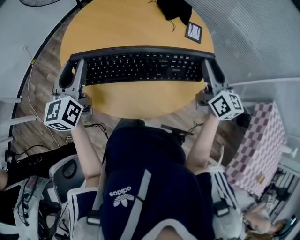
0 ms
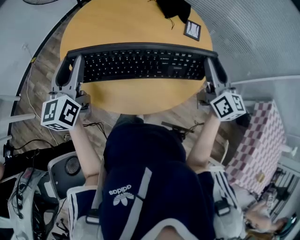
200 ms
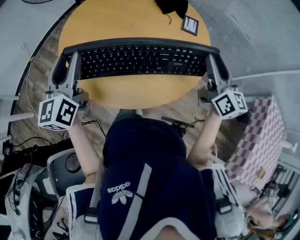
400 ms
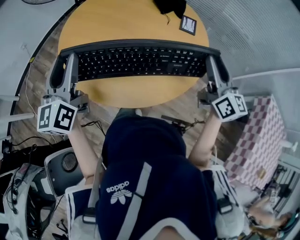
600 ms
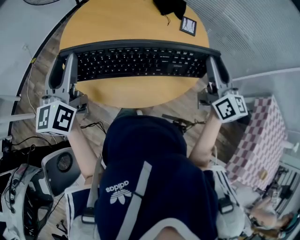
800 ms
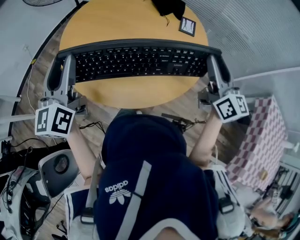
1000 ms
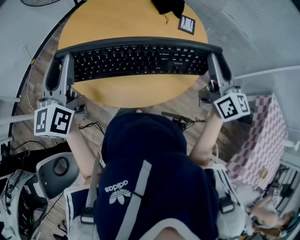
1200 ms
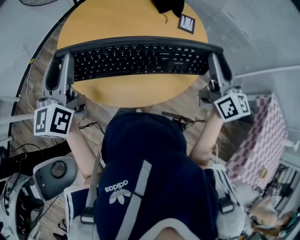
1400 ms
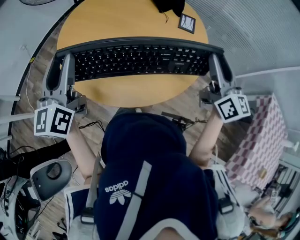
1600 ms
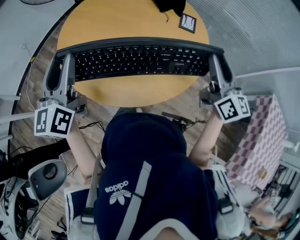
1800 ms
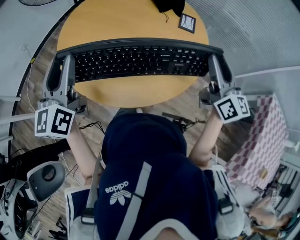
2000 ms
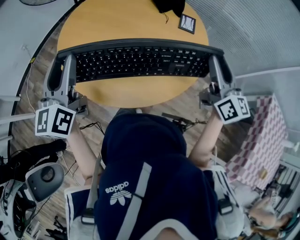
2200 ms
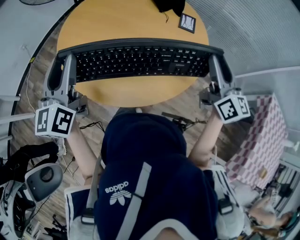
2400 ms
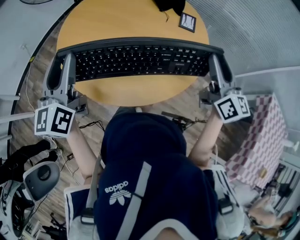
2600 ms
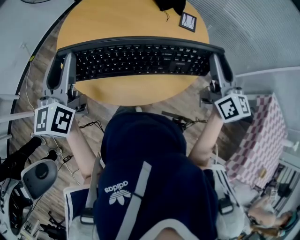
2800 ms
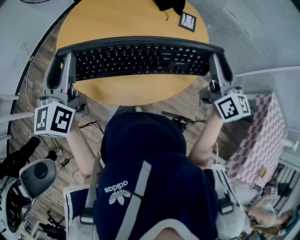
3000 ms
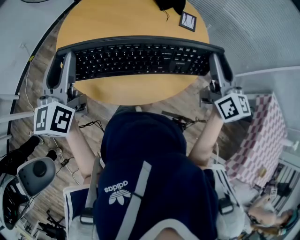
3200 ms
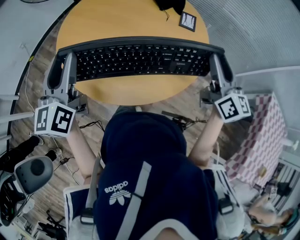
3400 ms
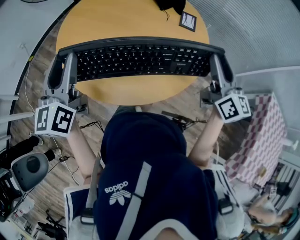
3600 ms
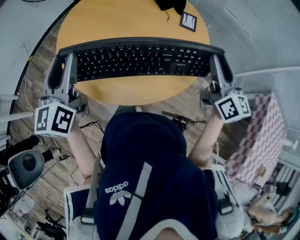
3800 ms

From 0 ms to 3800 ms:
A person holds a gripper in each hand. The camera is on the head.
From 0 ms to 1200 ms: There are only small adjustments of the grippers.
From 1200 ms to 3800 ms: Both grippers stay put.

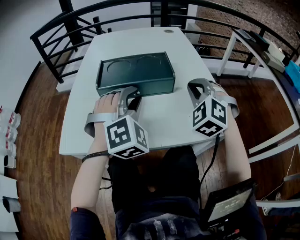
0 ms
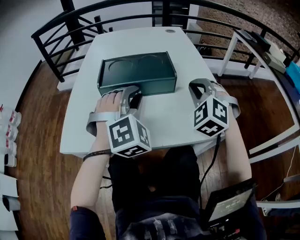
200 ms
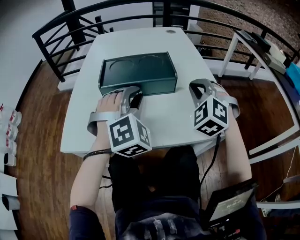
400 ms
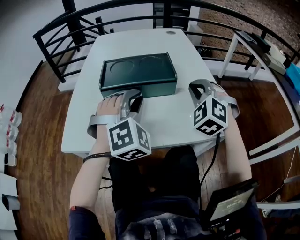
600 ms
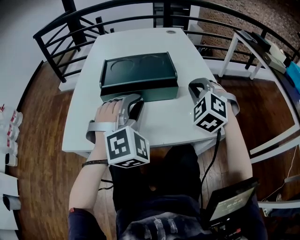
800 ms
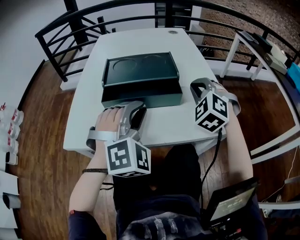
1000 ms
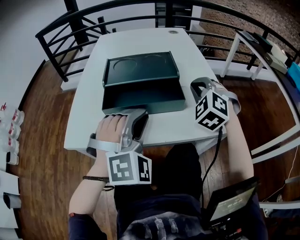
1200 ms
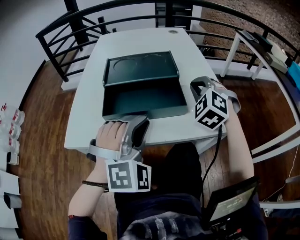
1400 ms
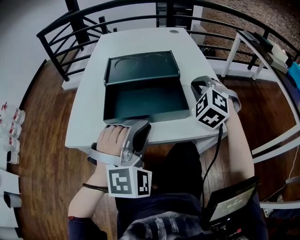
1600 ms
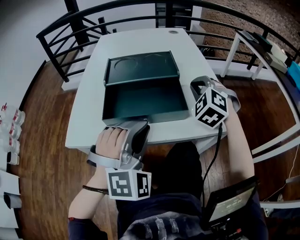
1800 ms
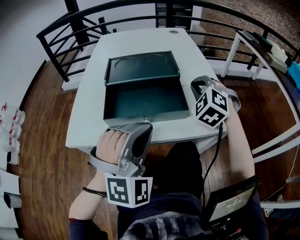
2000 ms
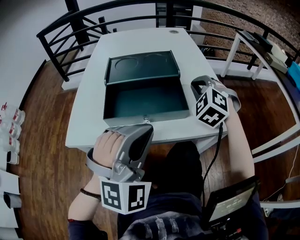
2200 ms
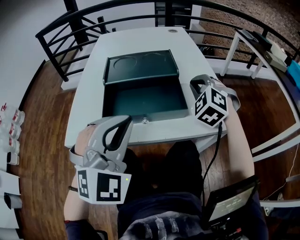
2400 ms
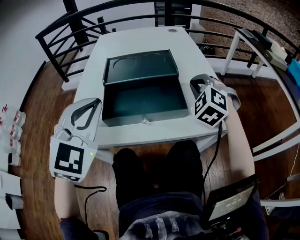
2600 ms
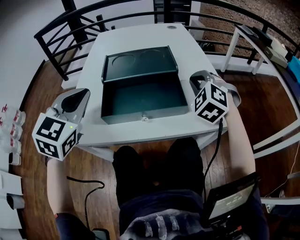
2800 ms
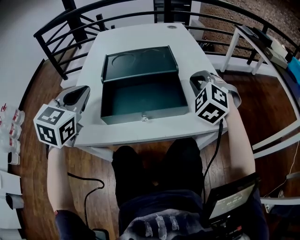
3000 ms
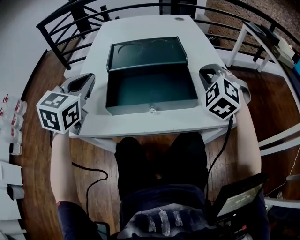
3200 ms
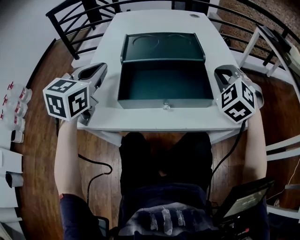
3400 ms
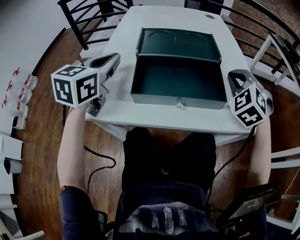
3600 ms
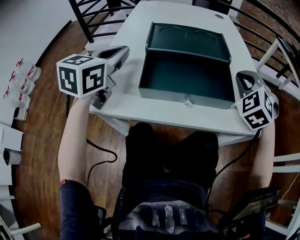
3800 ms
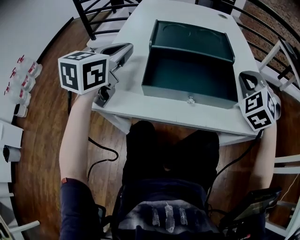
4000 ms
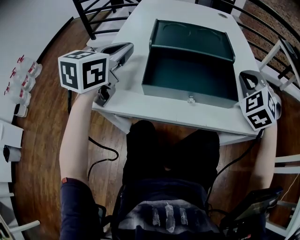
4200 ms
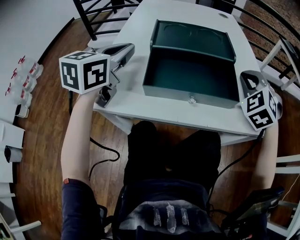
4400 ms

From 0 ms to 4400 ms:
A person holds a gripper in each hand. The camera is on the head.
From 0 ms to 1400 ms: The left gripper shifts approximately 10 cm backward.
From 1400 ms to 3000 ms: The left gripper goes roughly 20 cm to the left, and rotates around the line of its fingers by approximately 50 degrees, counterclockwise from behind.
From 3000 ms to 4400 ms: The left gripper rotates about 20 degrees.

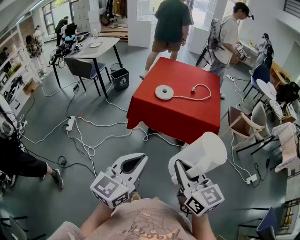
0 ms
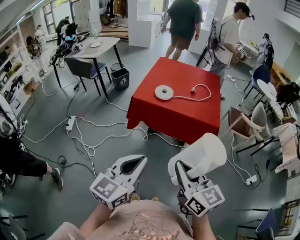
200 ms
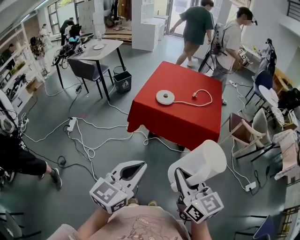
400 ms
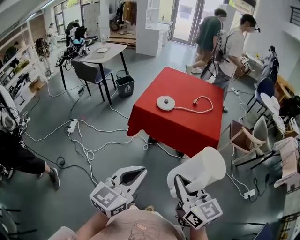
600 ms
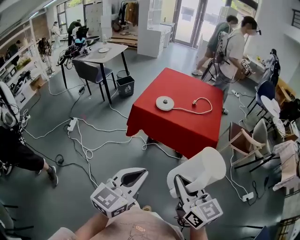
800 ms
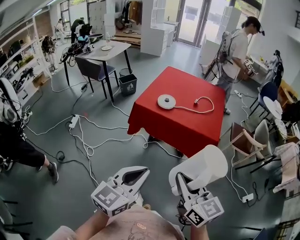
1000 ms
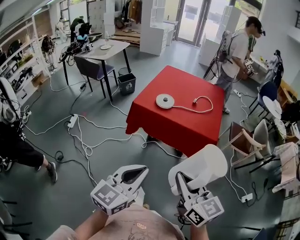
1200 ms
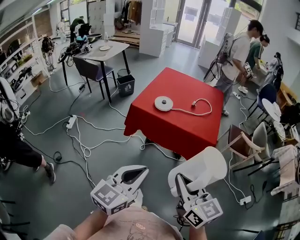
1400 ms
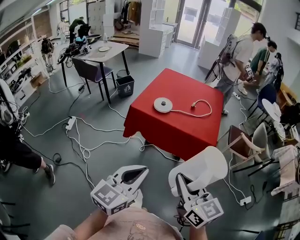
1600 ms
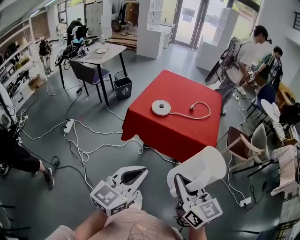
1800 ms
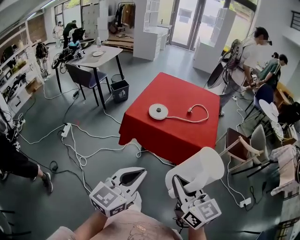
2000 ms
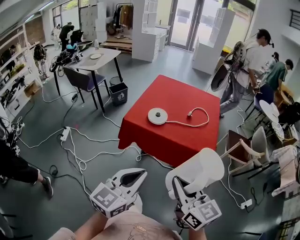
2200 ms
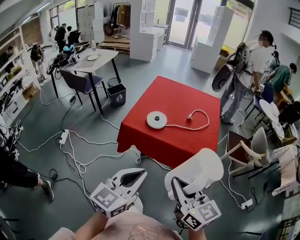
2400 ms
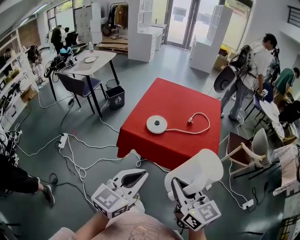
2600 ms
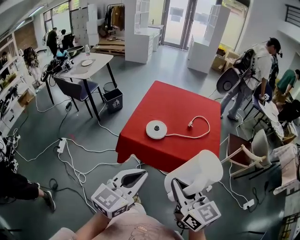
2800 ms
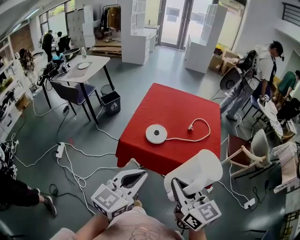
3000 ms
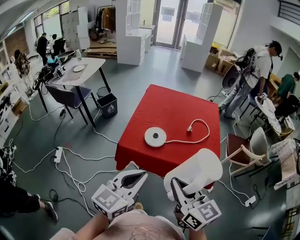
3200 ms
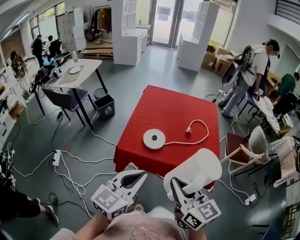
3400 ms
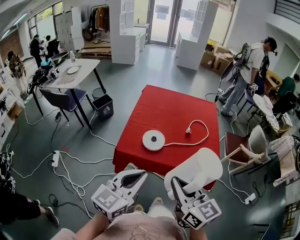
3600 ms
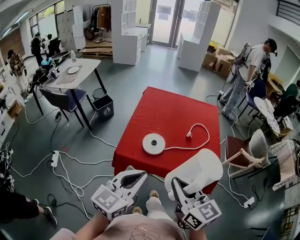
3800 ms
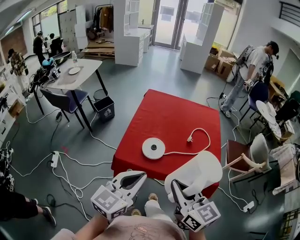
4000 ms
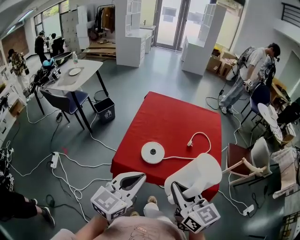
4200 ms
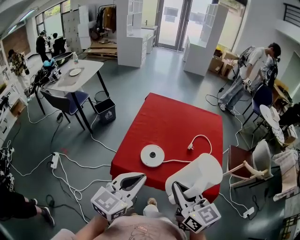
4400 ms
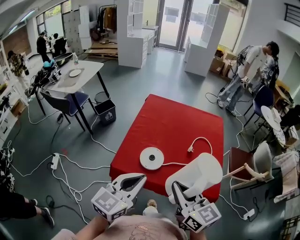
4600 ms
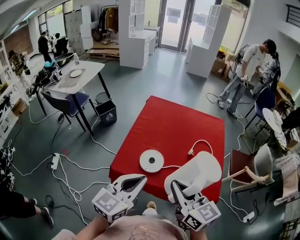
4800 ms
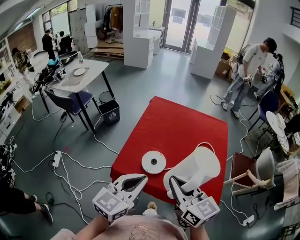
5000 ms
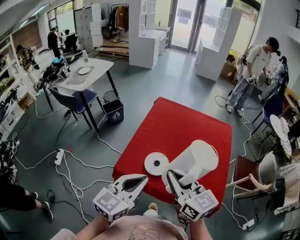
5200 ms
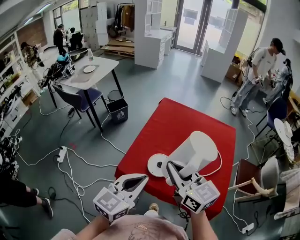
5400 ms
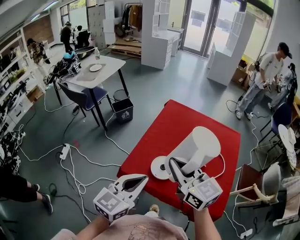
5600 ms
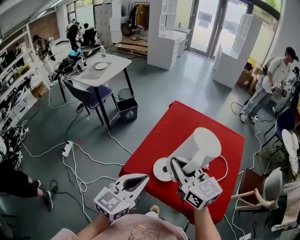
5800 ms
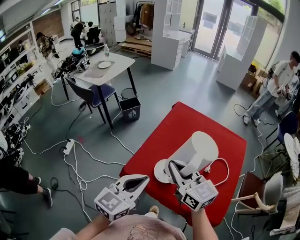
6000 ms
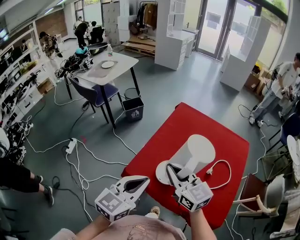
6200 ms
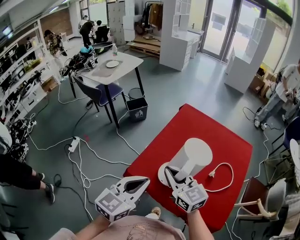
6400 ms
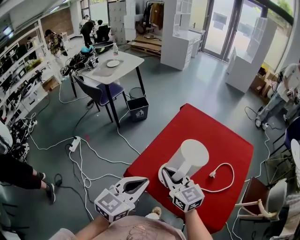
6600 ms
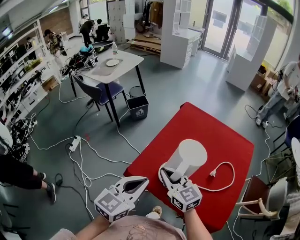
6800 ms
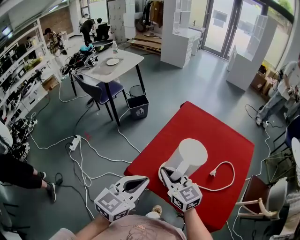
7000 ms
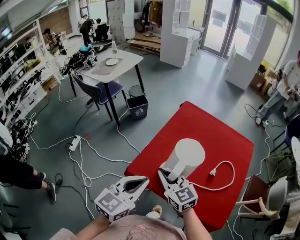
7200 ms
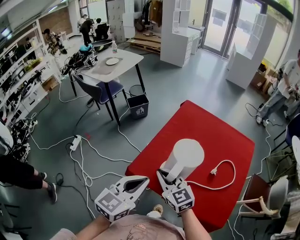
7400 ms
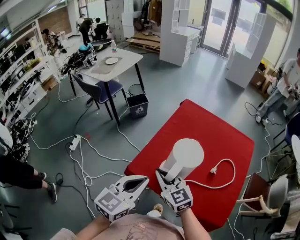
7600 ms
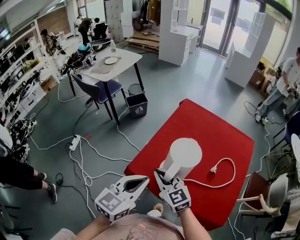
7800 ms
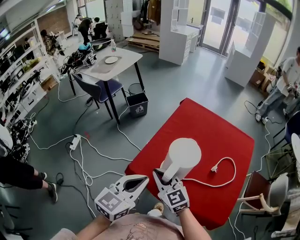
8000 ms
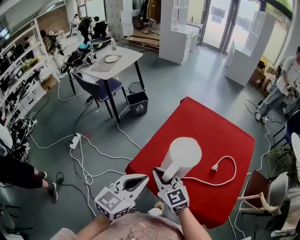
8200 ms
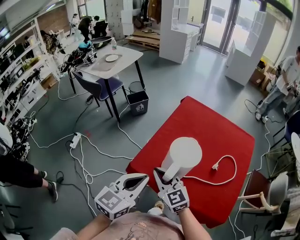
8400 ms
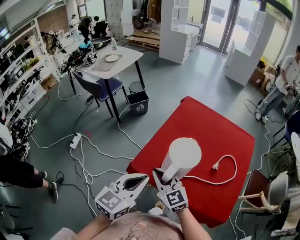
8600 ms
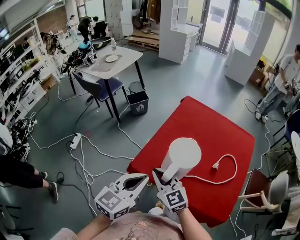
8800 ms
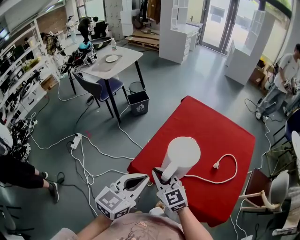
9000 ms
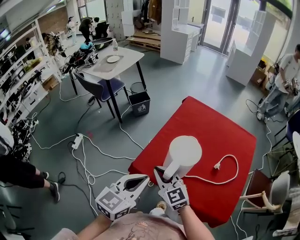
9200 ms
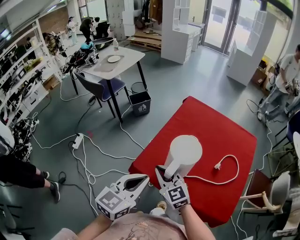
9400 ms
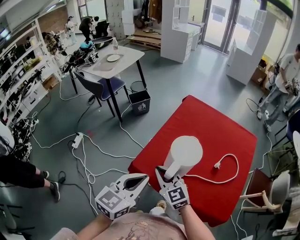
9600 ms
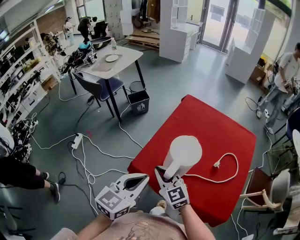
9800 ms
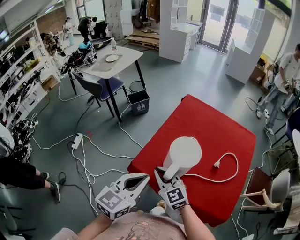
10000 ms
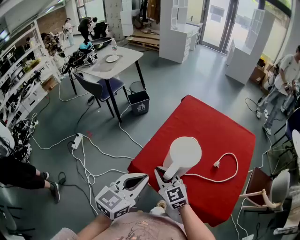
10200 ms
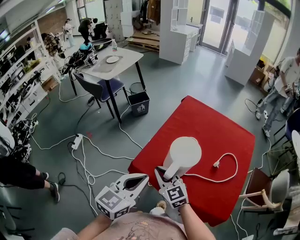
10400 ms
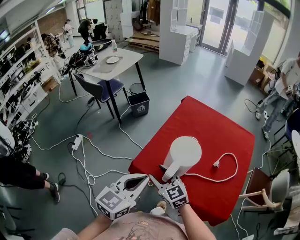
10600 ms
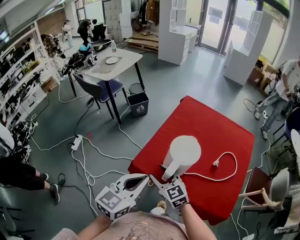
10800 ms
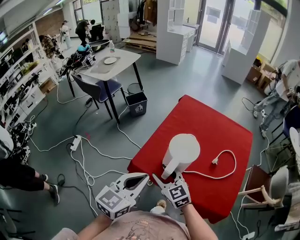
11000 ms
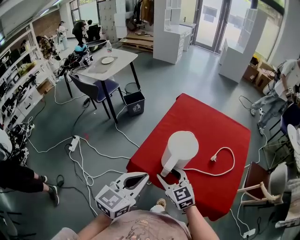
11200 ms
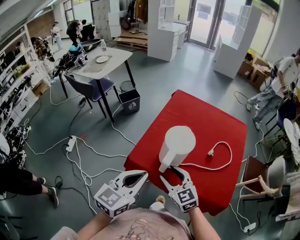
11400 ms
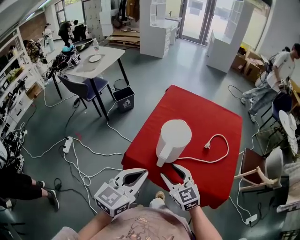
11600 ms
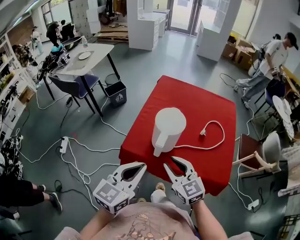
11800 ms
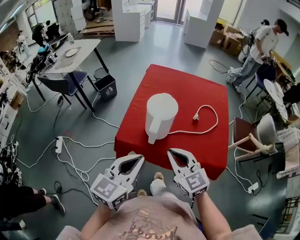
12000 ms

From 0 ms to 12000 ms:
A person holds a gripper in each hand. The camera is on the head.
From 0 ms to 1600 ms: The grippers both shift to the right by roughly 5 cm.
From 1600 ms to 3000 ms: Both grippers move forward, approximately 20 cm.
From 3000 ms to 4400 ms: Both grippers move forward, approximately 15 cm.
From 4400 ms to 6000 ms: The left gripper goes roughly 5 cm forward. The right gripper heads forward and to the left, covering some 20 cm, and turns by roughly 20 degrees.
From 6000 ms to 7600 ms: The right gripper heads downward and to the left, covering approximately 15 cm.
From 7600 ms to 10400 ms: There are only small adjustments of the grippers.
From 10400 ms to 12000 ms: The right gripper is displaced backward, to the right and upward by roughly 15 cm, and opens and closes again. Meanwhile the left gripper goes roughly 5 cm backward.

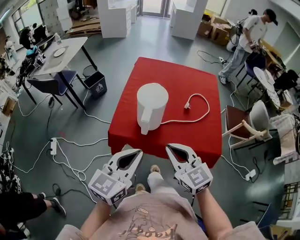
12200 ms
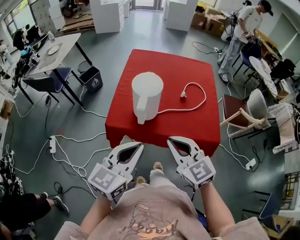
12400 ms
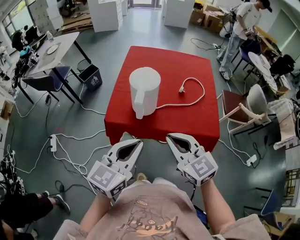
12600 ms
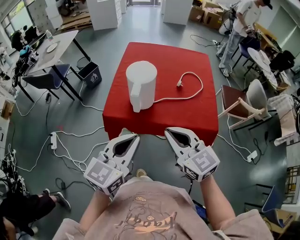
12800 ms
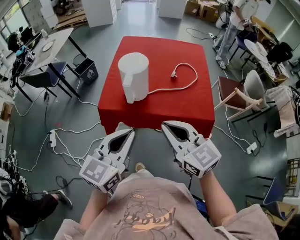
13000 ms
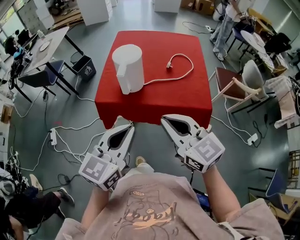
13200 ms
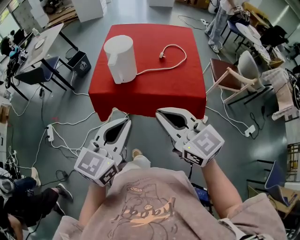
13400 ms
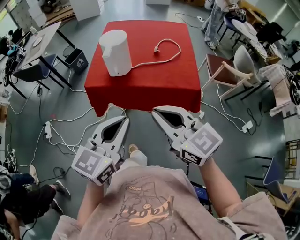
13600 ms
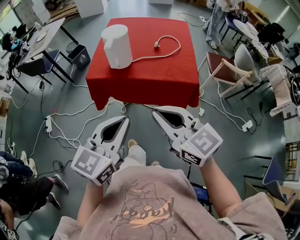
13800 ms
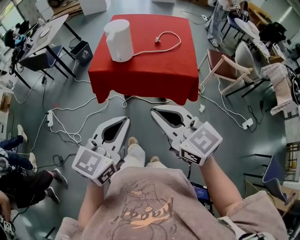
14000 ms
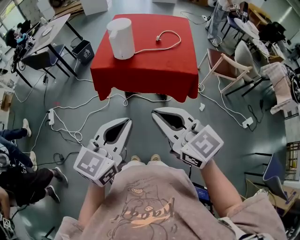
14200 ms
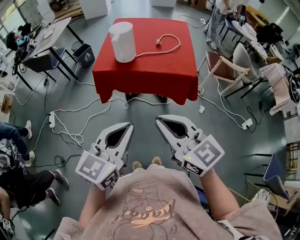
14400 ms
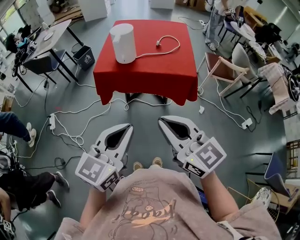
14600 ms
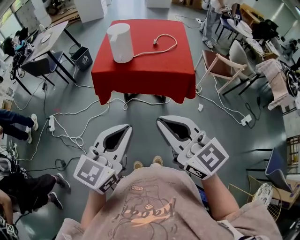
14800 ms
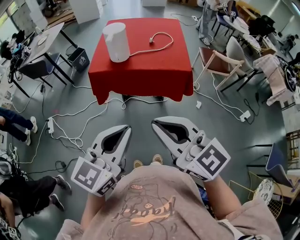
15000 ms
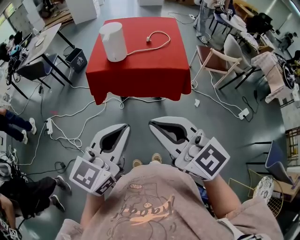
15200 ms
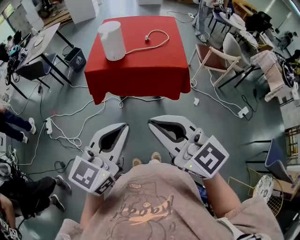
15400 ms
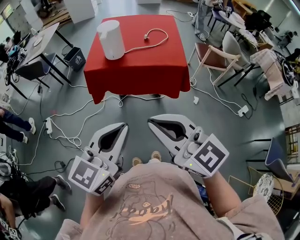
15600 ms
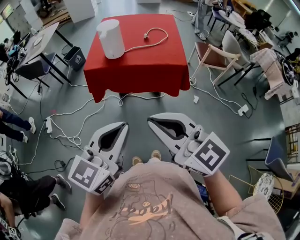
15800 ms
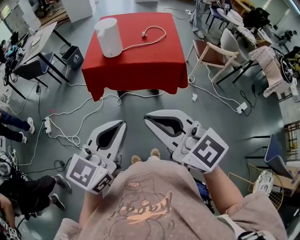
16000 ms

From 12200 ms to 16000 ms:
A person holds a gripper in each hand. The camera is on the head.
From 12200 ms to 13400 ms: The grippers both shift backward and to the right by about 15 cm.
From 13400 ms to 14800 ms: The two grippers go about 20 cm backward.
From 14800 ms to 16000 ms: The grippers stay close to where they were, moving slightly.
